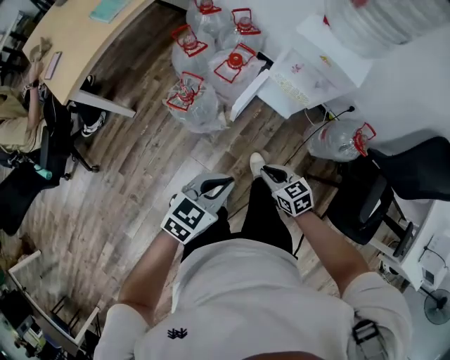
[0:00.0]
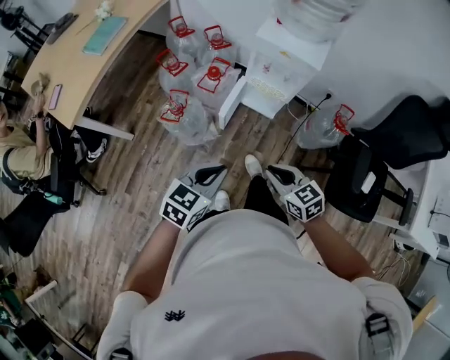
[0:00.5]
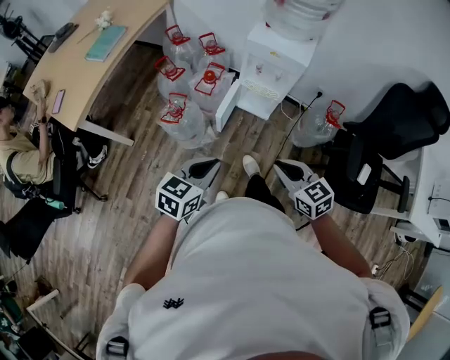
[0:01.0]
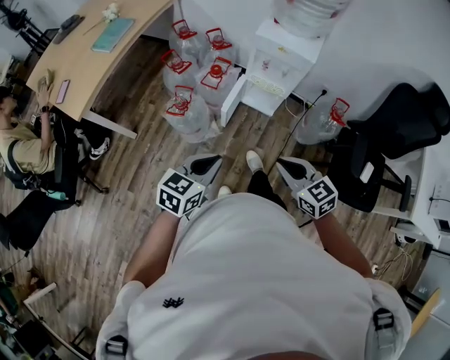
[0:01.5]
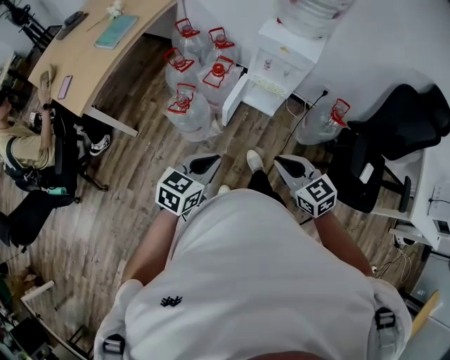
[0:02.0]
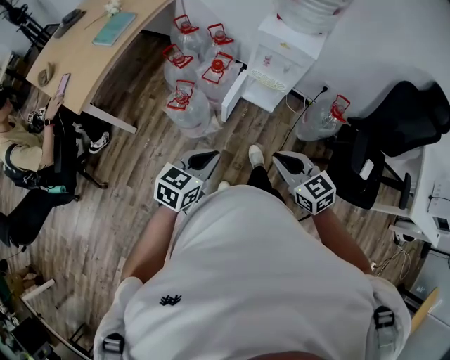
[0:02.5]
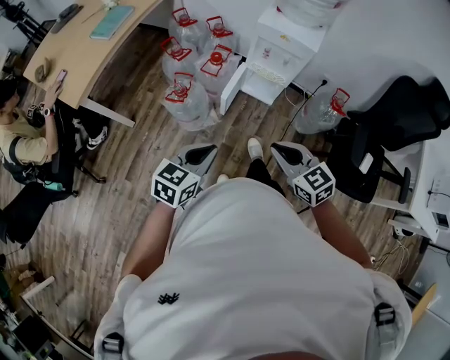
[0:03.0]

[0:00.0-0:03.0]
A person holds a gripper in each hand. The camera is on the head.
0.0 to 1.5 s: The left gripper shifts approximately 10 cm upward and backward. The right gripper goes roughly 25 cm upward and backward, and swivels some 20 degrees.
1.5 to 3.0 s: The grippers make only small movements.

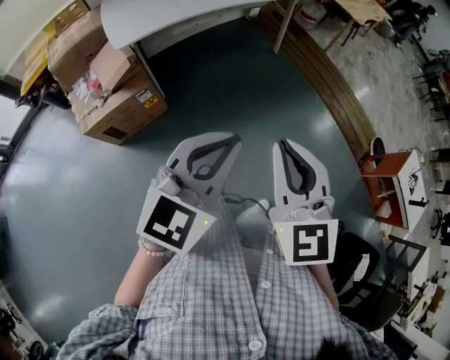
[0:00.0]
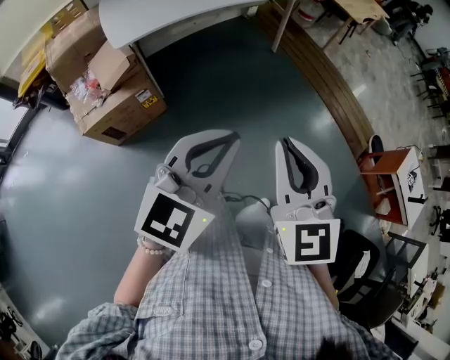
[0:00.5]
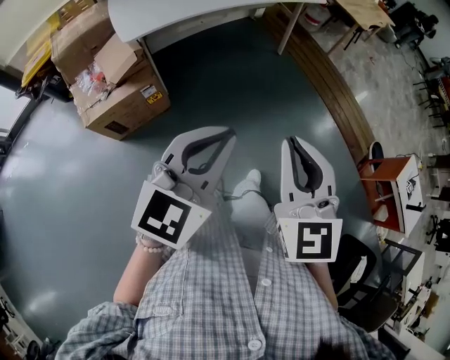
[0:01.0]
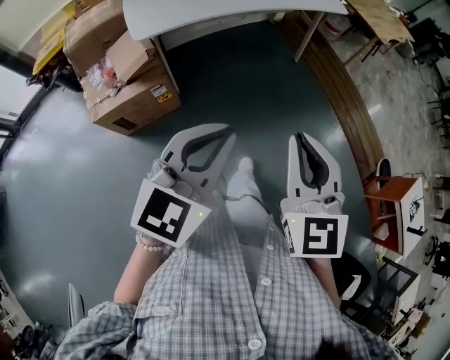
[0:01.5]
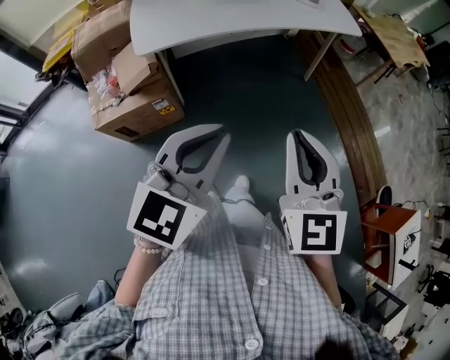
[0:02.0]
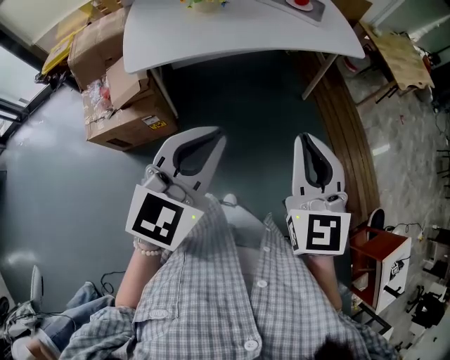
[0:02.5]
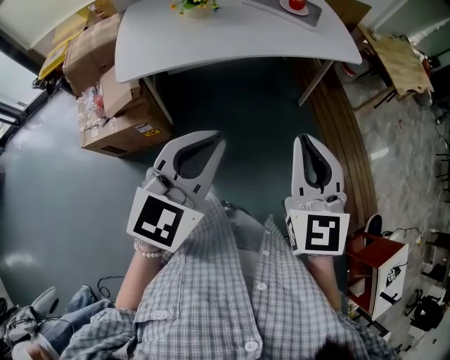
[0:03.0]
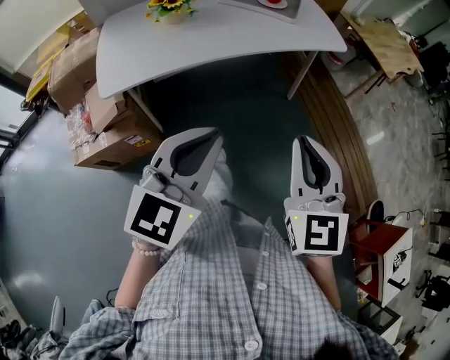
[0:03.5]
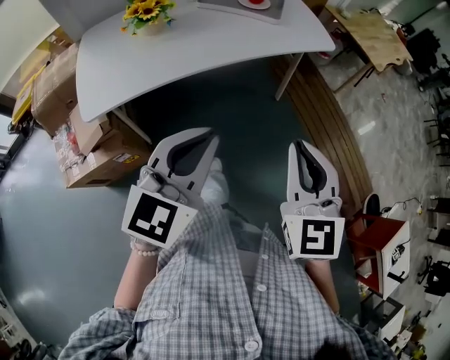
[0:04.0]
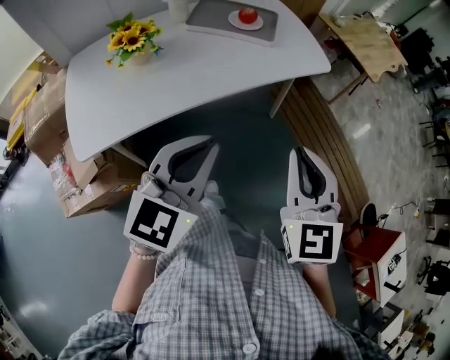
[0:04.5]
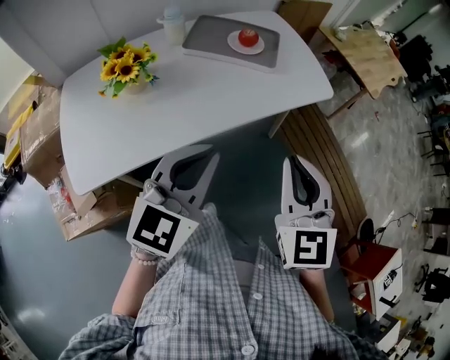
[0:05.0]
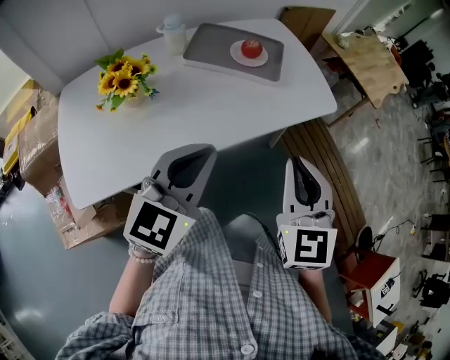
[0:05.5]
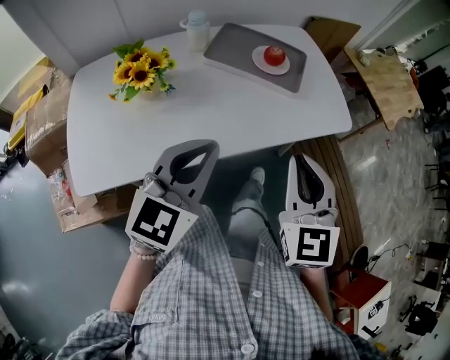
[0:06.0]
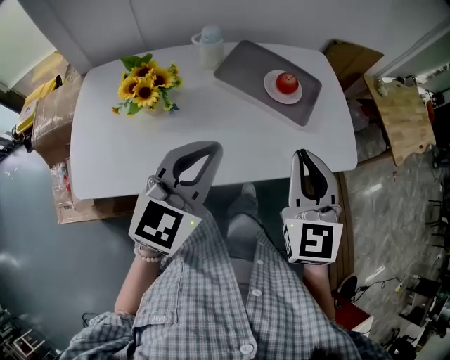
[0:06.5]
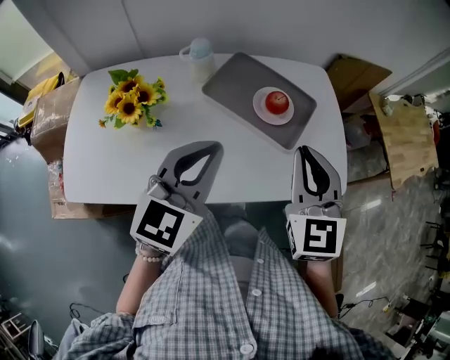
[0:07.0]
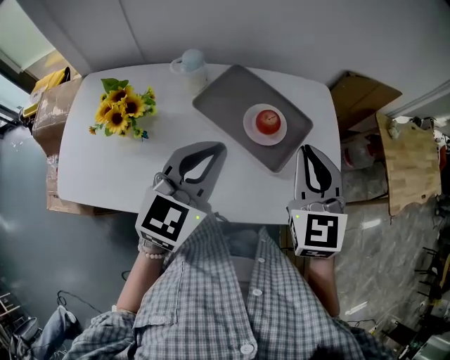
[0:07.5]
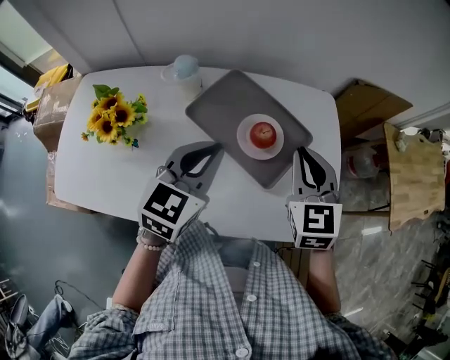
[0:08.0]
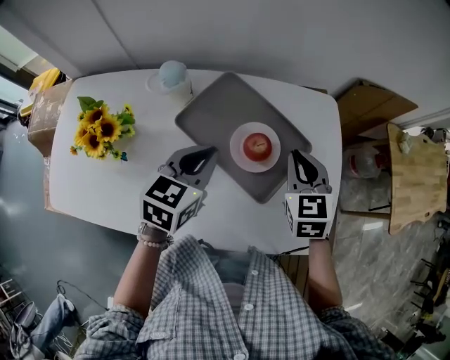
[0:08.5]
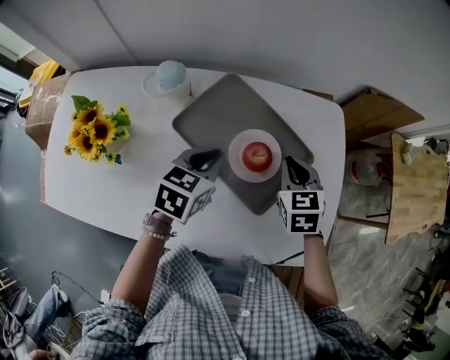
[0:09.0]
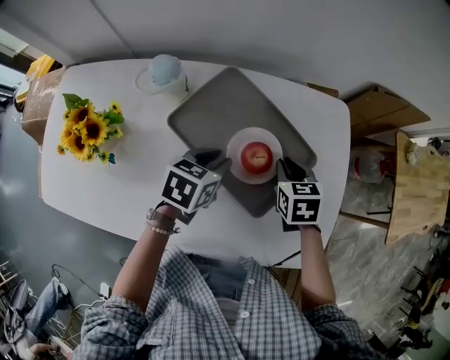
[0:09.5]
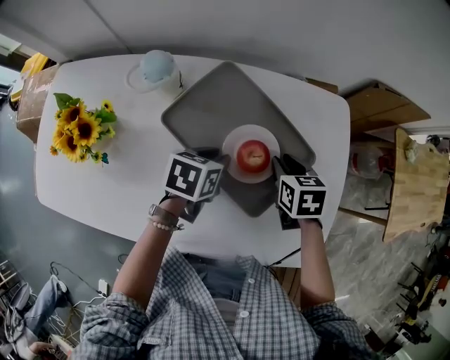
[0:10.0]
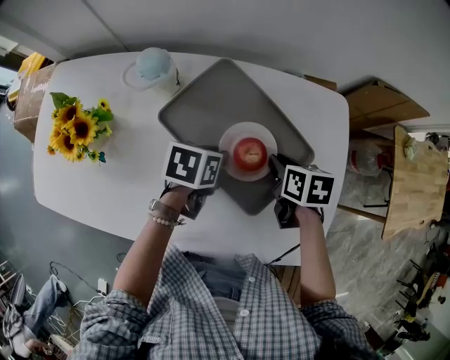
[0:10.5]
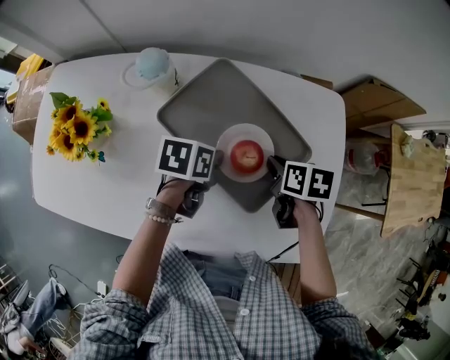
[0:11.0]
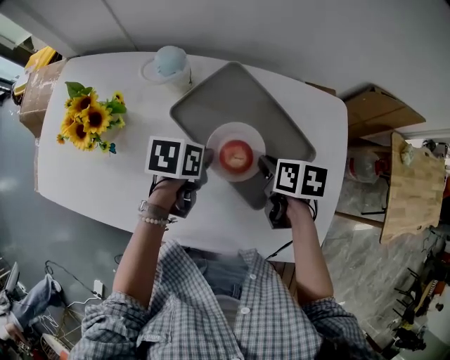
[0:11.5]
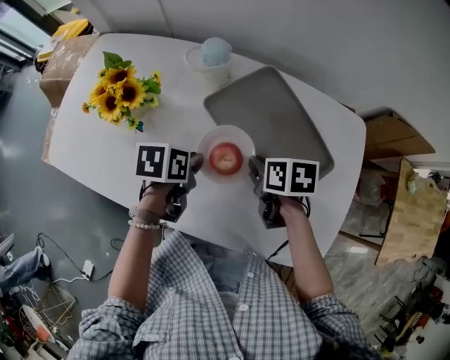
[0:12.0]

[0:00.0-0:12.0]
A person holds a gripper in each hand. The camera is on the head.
0.0 to 2.0 s: The grippers both shift forward by roughly 15 cm.
2.0 to 4.0 s: The left gripper is displaced forward by roughly 20 cm. The right gripper heads forward and to the right, covering some 25 cm.
4.0 to 6.0 s: The two grippers go roughly 30 cm forward.
6.0 to 8.0 s: The grippers both shift forward by some 35 cm. The right gripper rotates some 20 degrees. The left gripper rotates approximately 20 degrees.
8.0 to 10.0 s: The grippers both shift downward and forward by some 25 cm. The left gripper angles its fingers downward, by some 30 degrees; the right gripper tilts its fingers roughly 30 degrees downward.
10.0 to 12.0 s: The grippers both shift to the left and backward by about 15 cm. The left gripper swivels about 30 degrees. The right gripper swivels roughly 20 degrees.

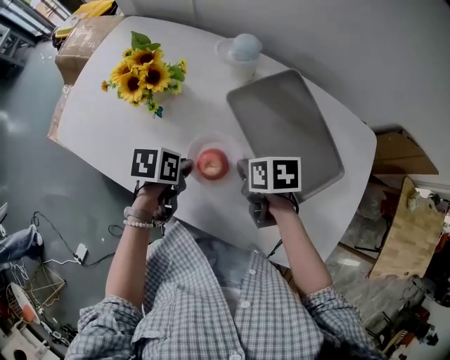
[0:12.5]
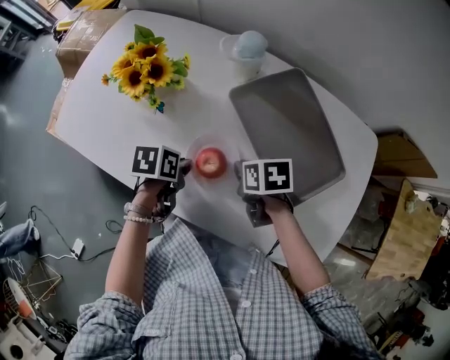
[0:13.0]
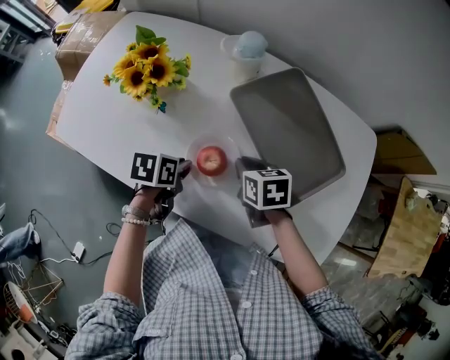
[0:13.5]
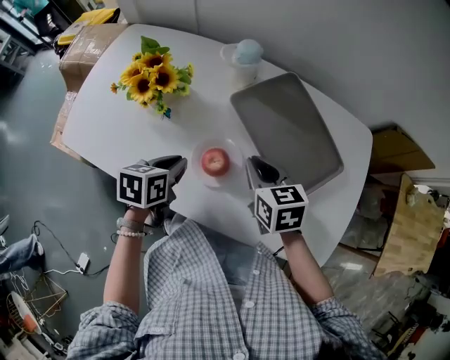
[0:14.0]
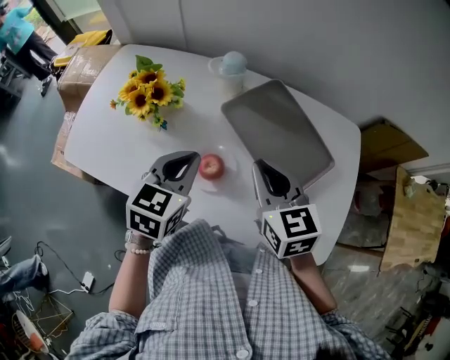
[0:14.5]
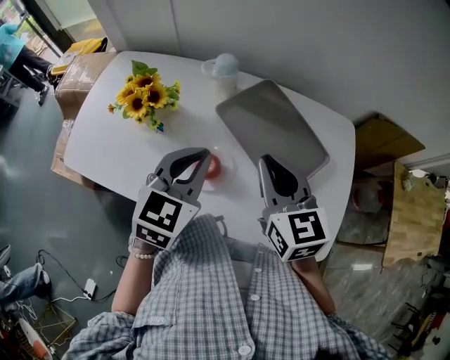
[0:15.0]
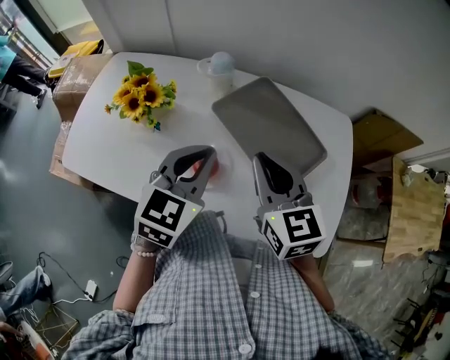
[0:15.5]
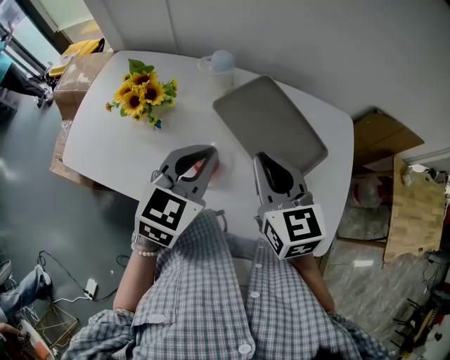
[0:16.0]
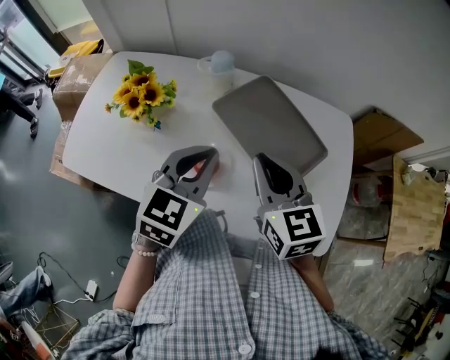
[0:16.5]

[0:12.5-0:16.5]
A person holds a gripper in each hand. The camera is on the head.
12.5 to 14.5 s: Both grippers move upward, some 15 cm. The right gripper angles its fingers upward, by about 30 degrees, while the left gripper rotates approximately 50 degrees.
14.5 to 16.5 s: The left gripper travels to the right and upward by about 10 cm.

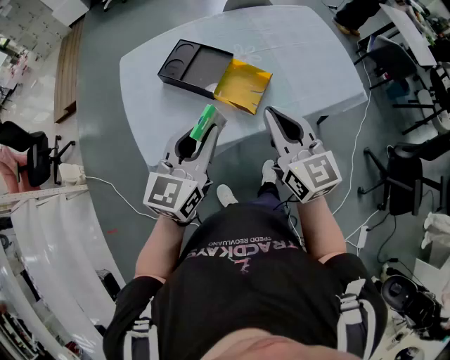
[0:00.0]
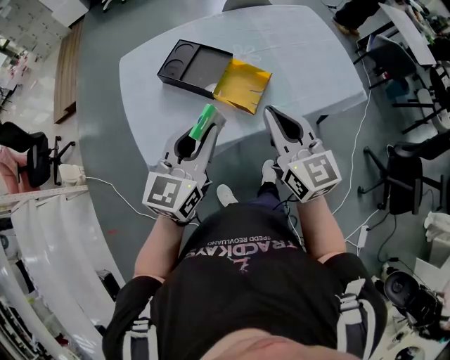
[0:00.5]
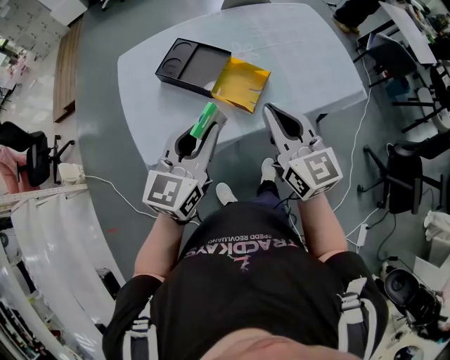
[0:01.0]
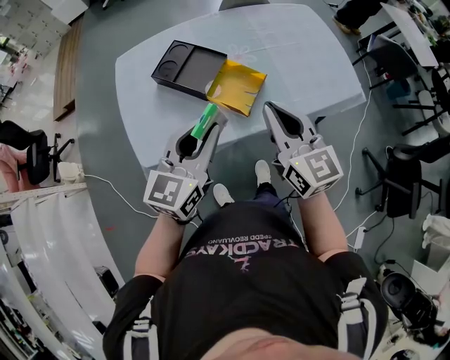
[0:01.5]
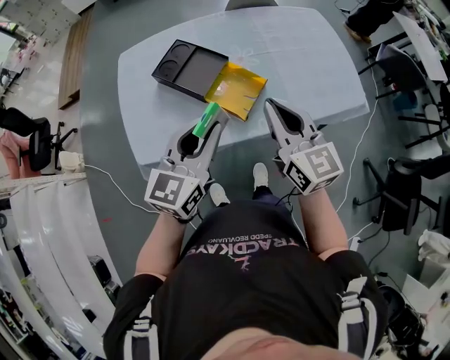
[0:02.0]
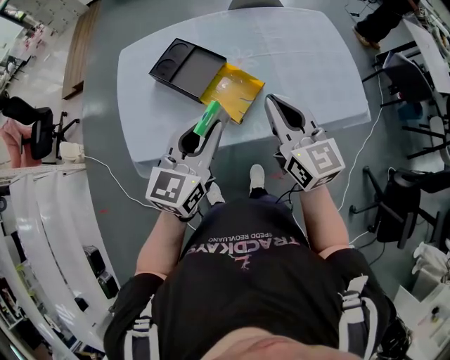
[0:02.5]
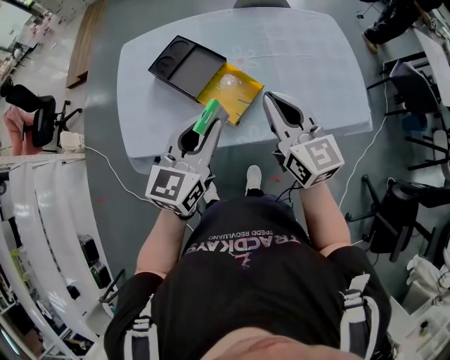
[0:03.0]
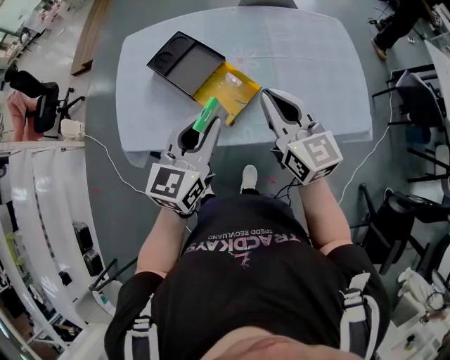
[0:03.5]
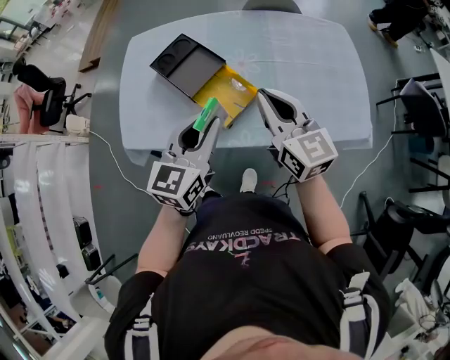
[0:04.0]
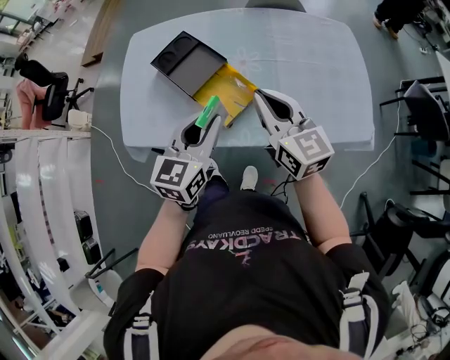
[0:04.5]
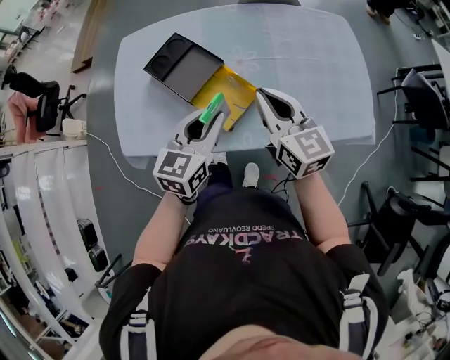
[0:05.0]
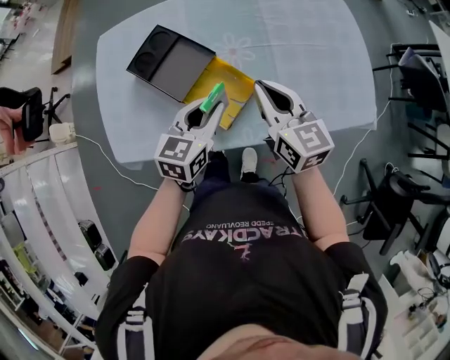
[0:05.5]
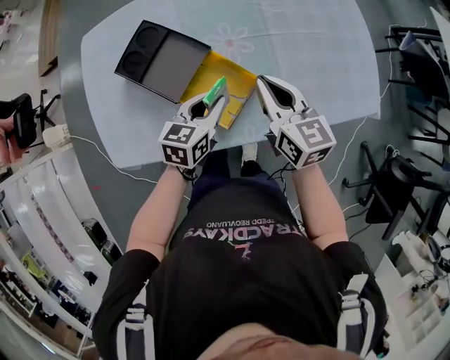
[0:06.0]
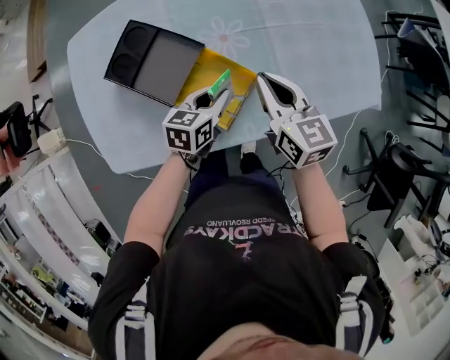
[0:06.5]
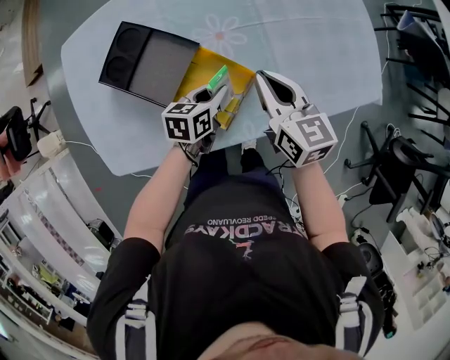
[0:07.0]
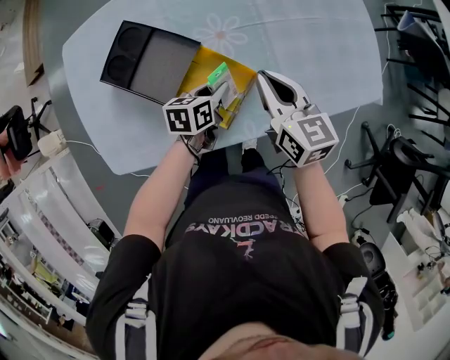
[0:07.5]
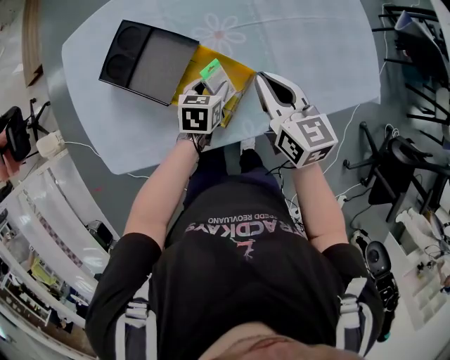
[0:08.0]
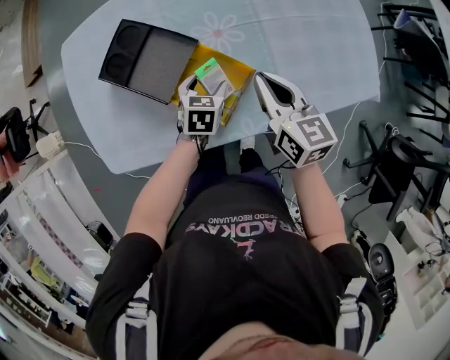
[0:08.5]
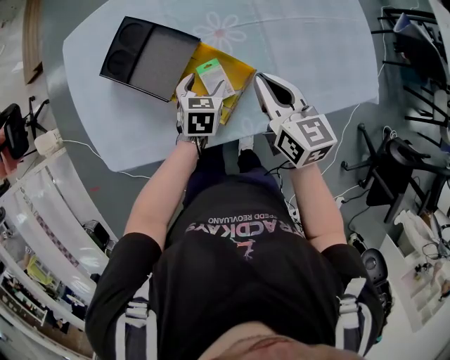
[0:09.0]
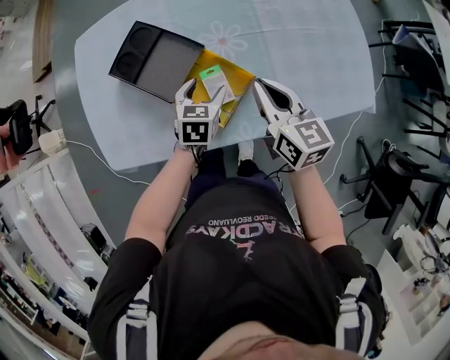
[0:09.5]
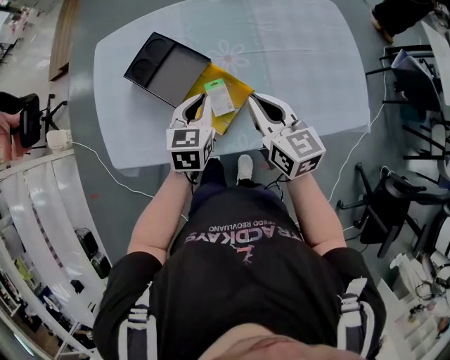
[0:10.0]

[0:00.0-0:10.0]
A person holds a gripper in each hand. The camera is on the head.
0.0 to 2.0 s: The left gripper goes about 5 cm to the right; the right gripper shifts some 10 cm to the right and forward.
2.0 to 4.0 s: The left gripper heads to the right, covering some 10 cm. The right gripper heads to the right and forward, covering about 10 cm.
4.0 to 6.0 s: The grippers both shift downward and forward by roughly 20 cm. The right gripper rotates some 20 degrees. The left gripper swivels approximately 30 degrees.
6.0 to 8.0 s: The left gripper moves downward, approximately 10 cm, and opens.
8.0 to 10.0 s: The left gripper heads upward, covering some 15 cm, turns by roughly 30 degrees, and closes up; the right gripper is displaced upward by some 5 cm.
